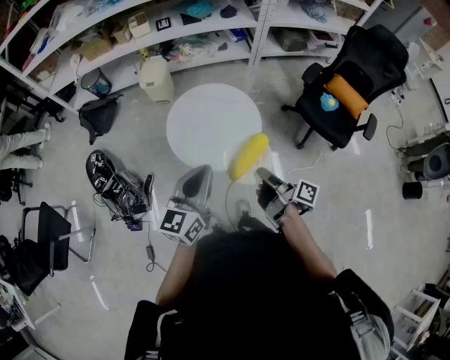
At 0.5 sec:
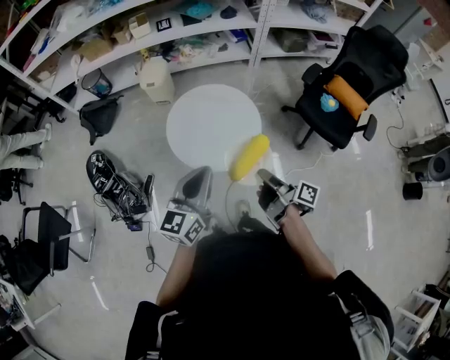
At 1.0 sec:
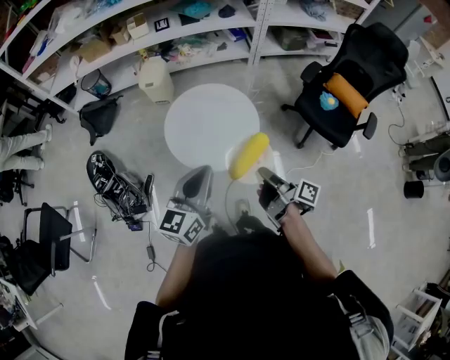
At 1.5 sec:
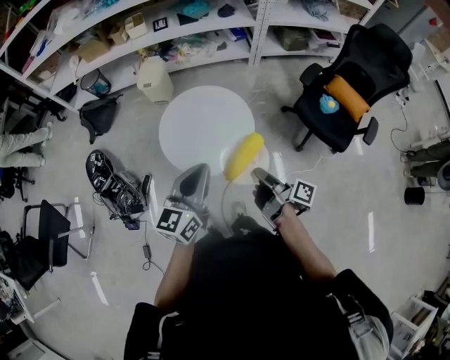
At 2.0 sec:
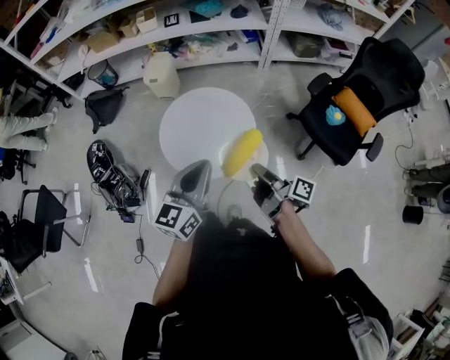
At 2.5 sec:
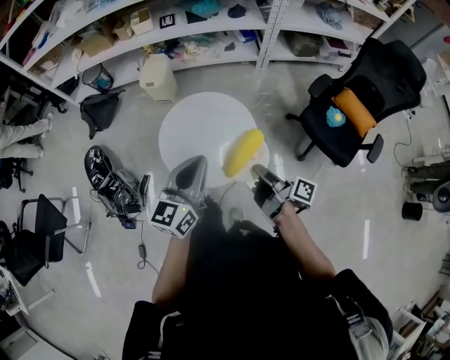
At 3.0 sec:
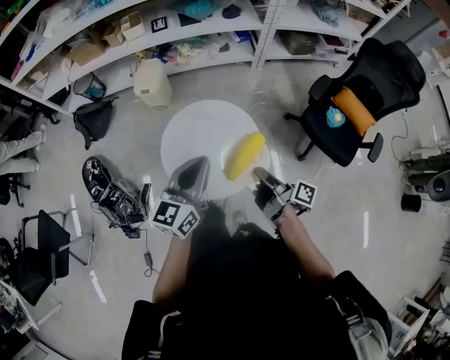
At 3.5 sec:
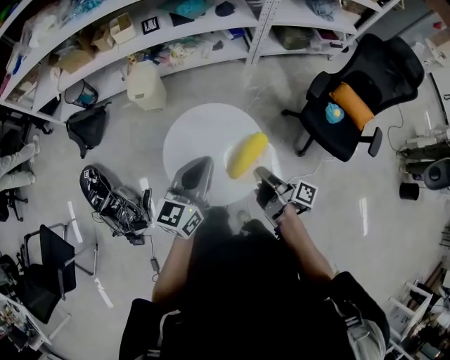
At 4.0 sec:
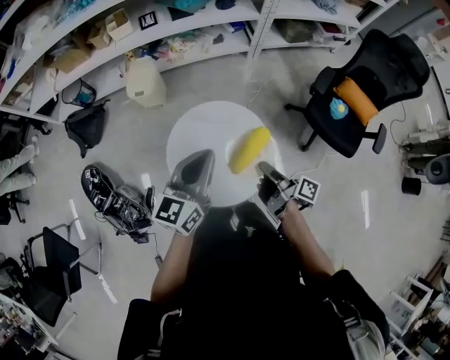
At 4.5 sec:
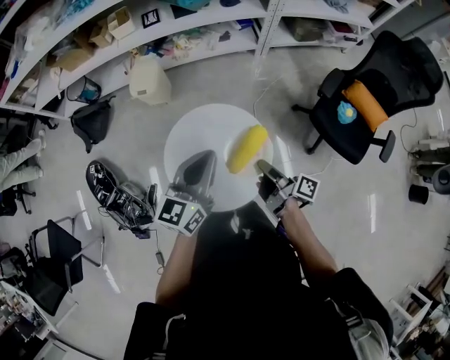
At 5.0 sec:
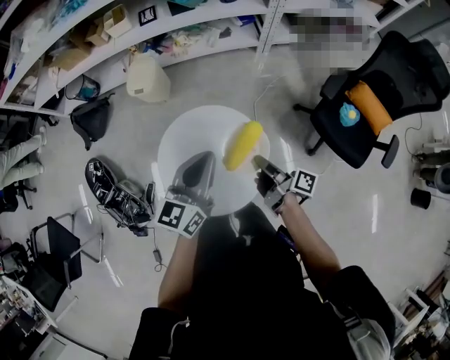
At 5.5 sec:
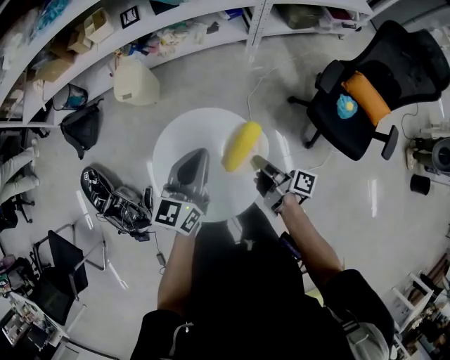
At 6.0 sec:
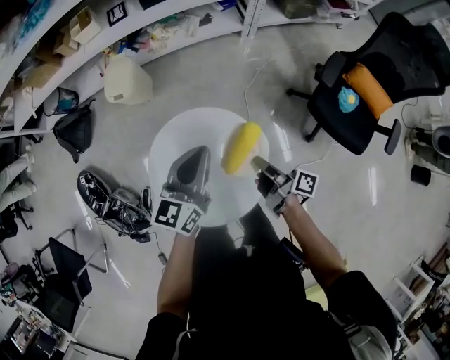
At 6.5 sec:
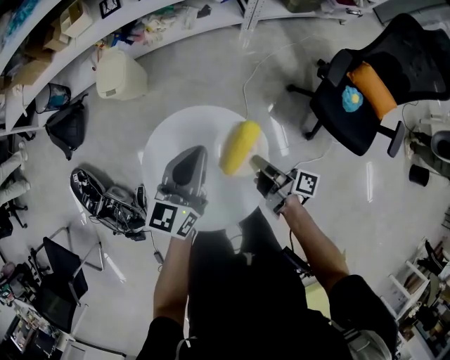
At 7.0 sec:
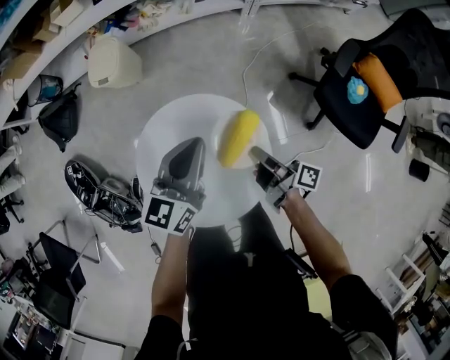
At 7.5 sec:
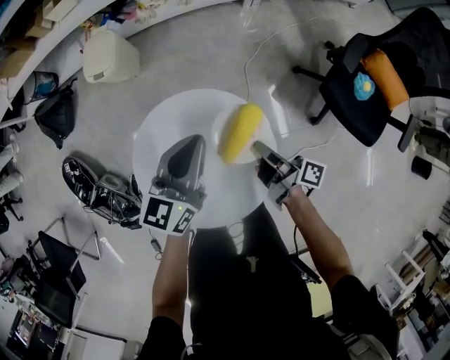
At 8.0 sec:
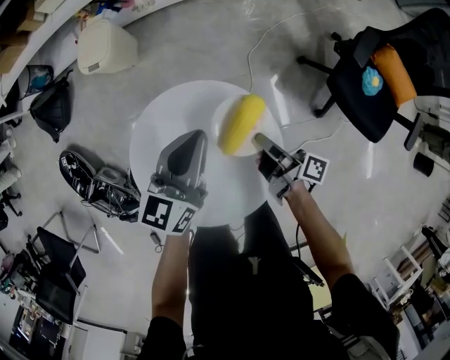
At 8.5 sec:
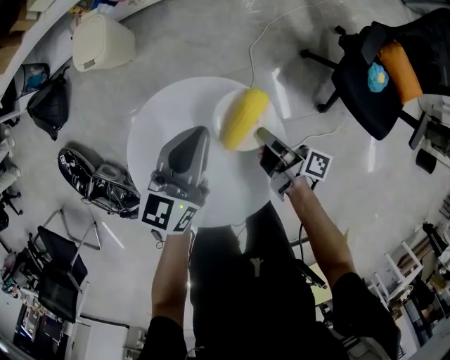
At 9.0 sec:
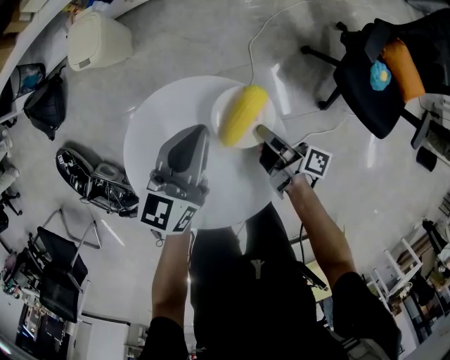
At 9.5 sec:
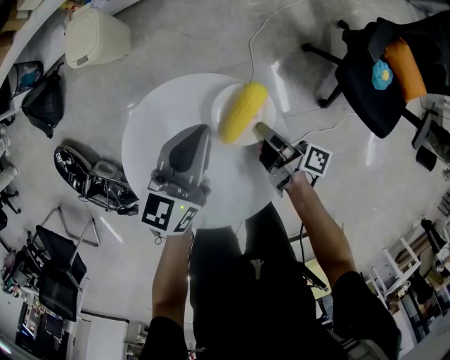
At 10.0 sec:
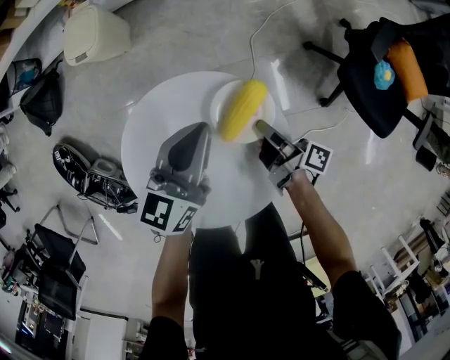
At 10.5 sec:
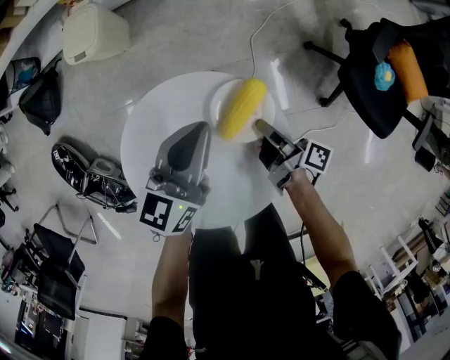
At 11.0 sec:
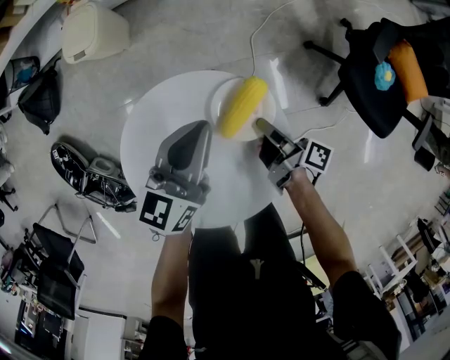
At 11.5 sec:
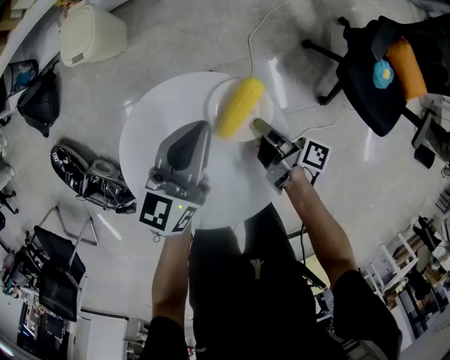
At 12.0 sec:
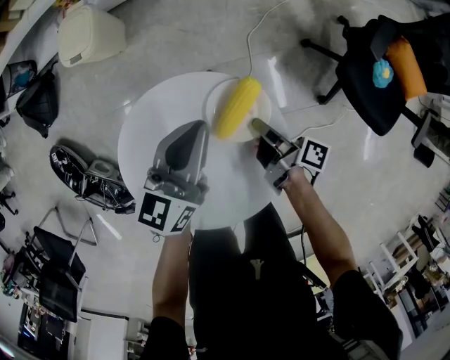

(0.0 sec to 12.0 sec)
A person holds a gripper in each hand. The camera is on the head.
0.0 sec - 2.0 sec: The left gripper changes place by about 10 cm.
2.0 sec - 4.0 sec: The left gripper moves some 20 cm.
4.0 sec - 6.0 sec: The left gripper shifts by some 20 cm.
6.0 sec - 8.0 sec: The left gripper travels downward by about 10 cm.
8.0 sec - 10.0 sec: The left gripper moves roughly 5 cm.

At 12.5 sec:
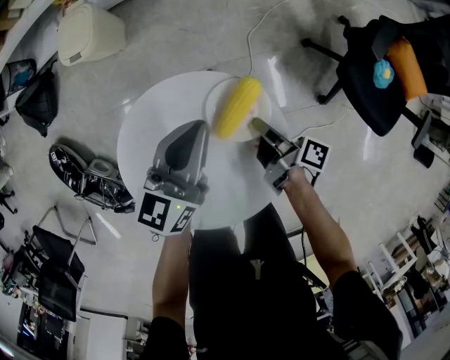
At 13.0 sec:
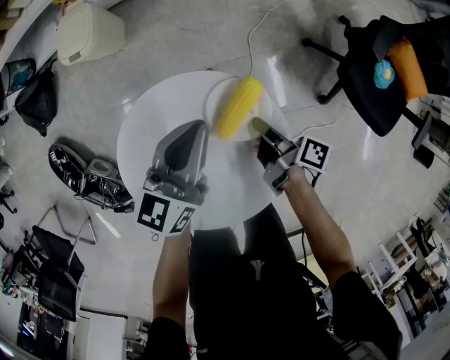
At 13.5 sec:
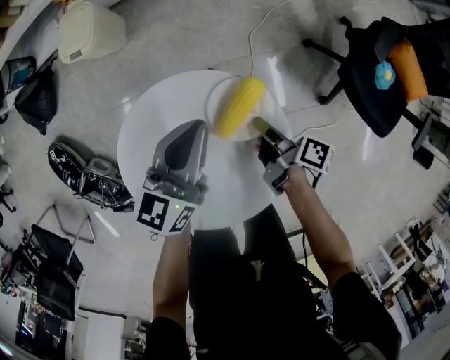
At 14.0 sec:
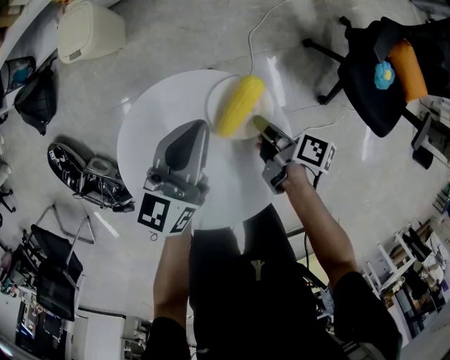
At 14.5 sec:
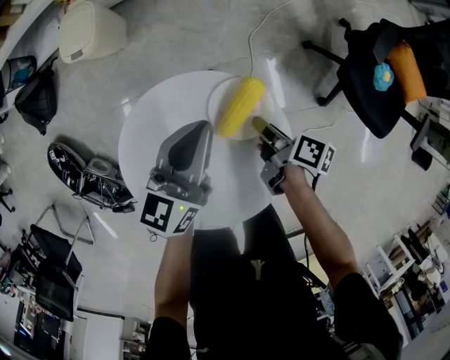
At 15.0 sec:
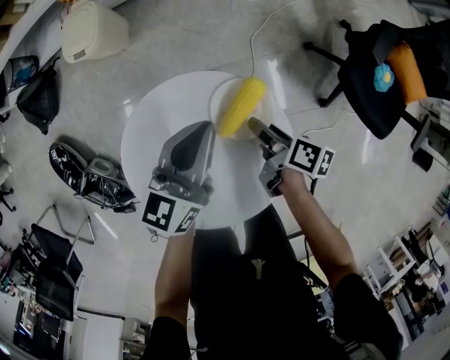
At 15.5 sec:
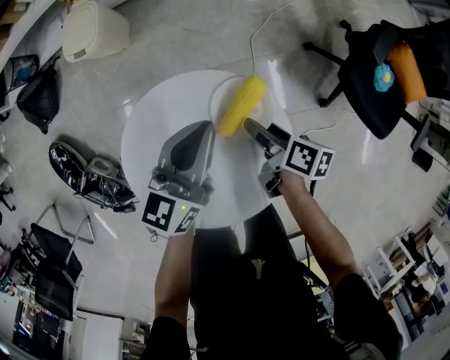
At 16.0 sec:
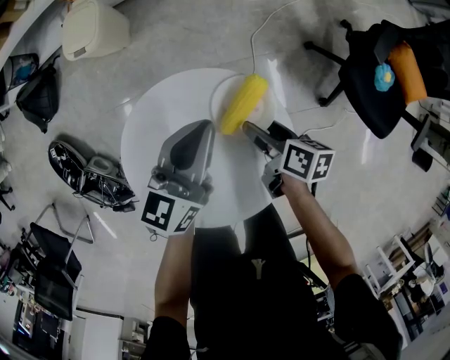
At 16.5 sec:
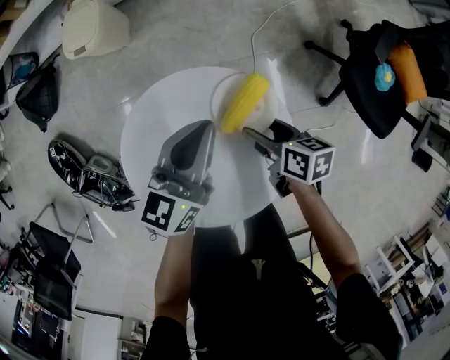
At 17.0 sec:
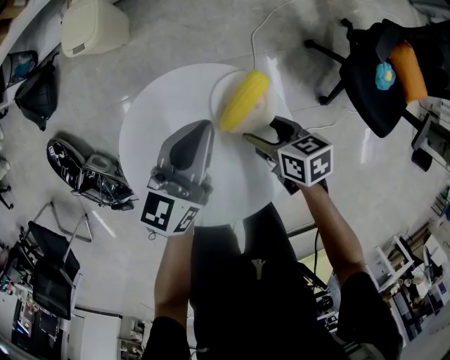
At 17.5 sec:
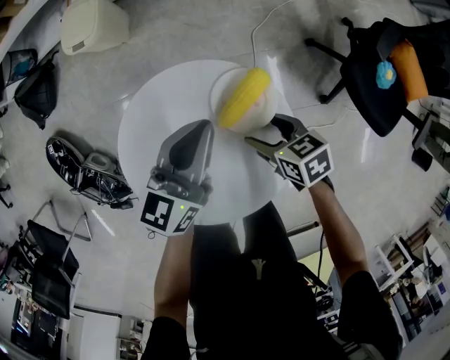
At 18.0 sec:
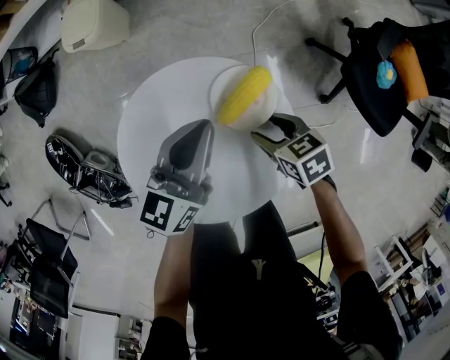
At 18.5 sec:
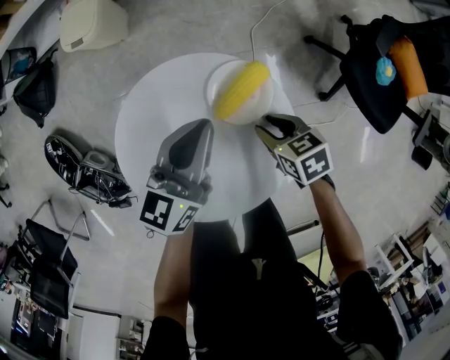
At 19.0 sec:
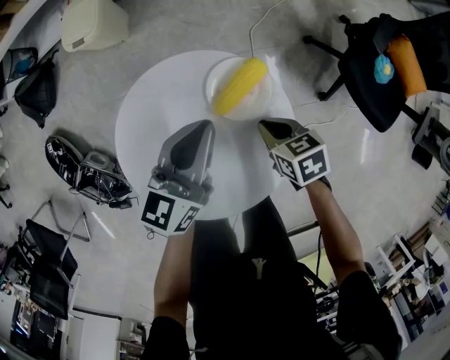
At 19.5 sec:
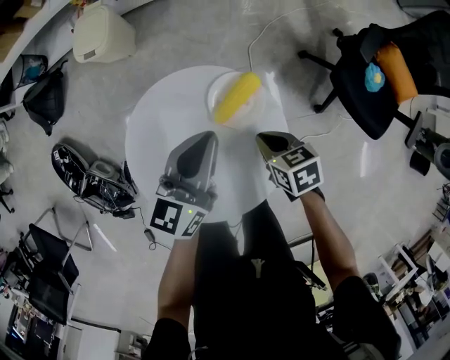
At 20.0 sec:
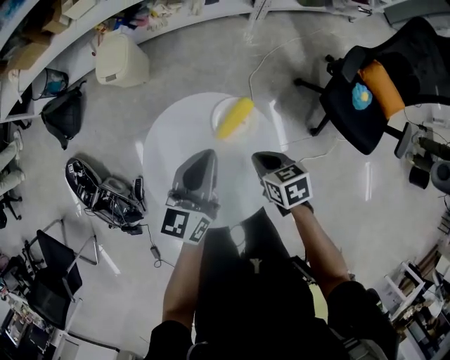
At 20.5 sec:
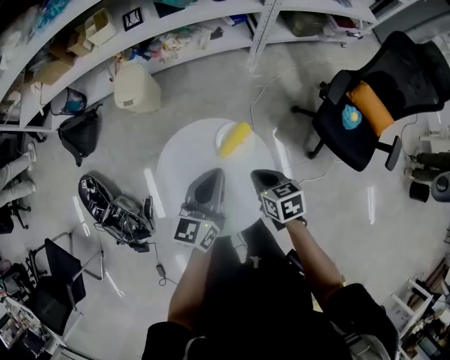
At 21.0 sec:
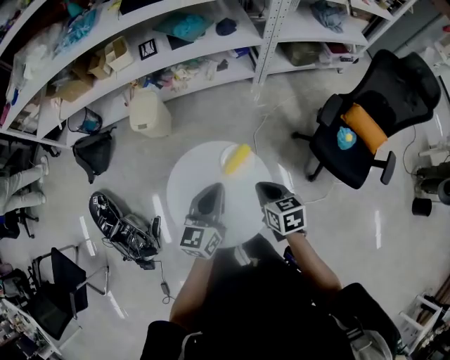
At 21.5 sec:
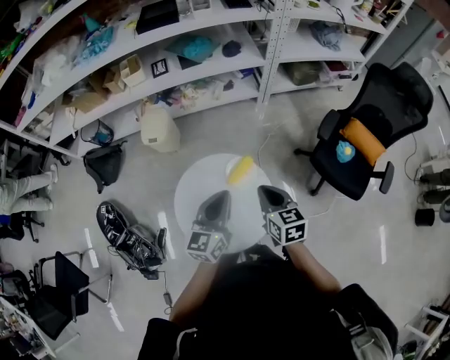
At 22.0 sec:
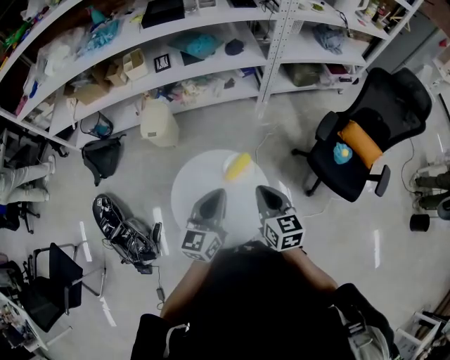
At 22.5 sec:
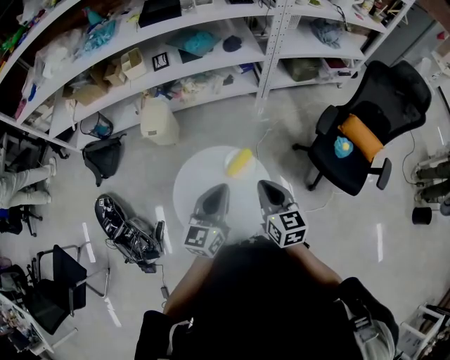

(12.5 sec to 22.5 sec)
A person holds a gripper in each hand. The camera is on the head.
18.5 sec - 20.5 sec: The left gripper is displaced upward by some 15 cm.
20.5 sec - 22.5 sec: The left gripper shifts roughly 10 cm upward.

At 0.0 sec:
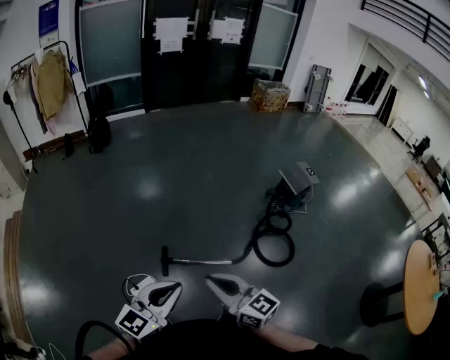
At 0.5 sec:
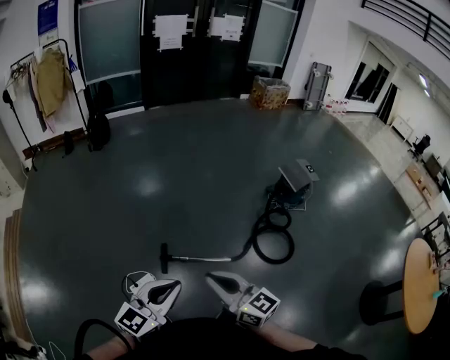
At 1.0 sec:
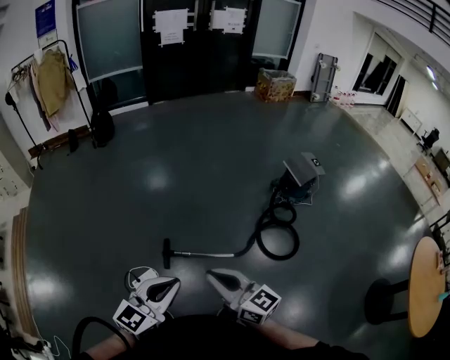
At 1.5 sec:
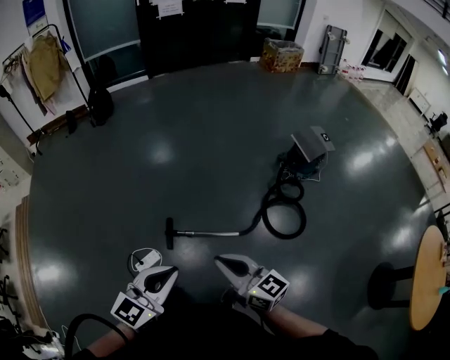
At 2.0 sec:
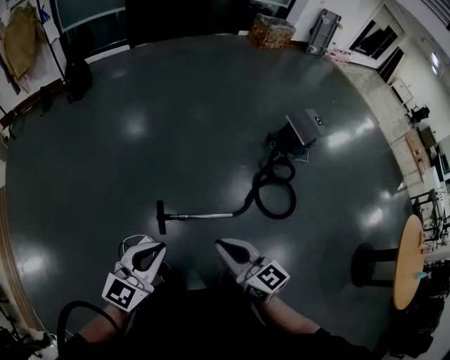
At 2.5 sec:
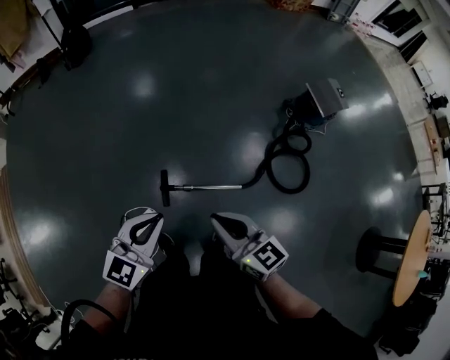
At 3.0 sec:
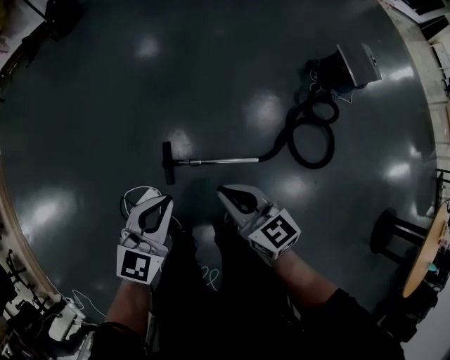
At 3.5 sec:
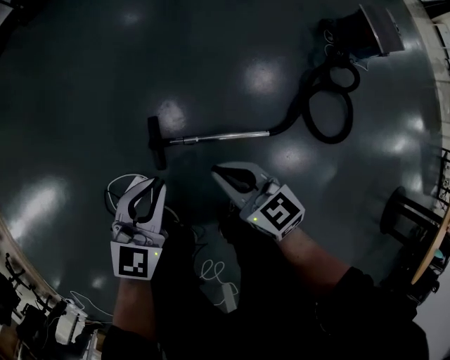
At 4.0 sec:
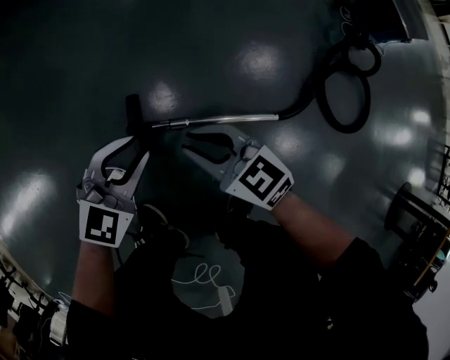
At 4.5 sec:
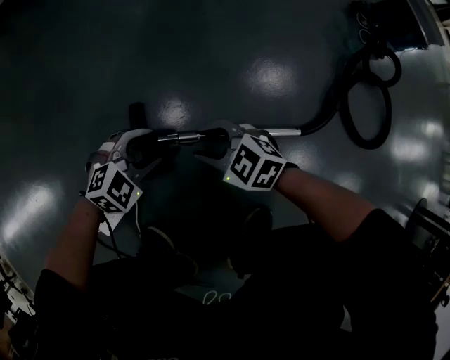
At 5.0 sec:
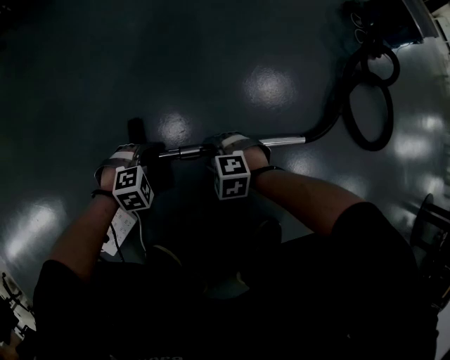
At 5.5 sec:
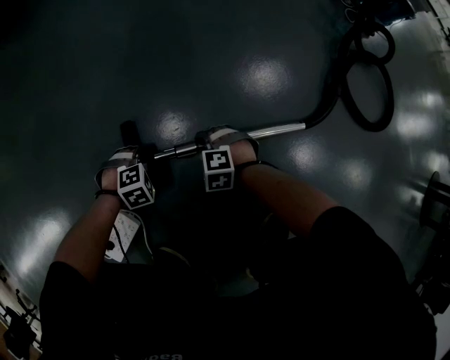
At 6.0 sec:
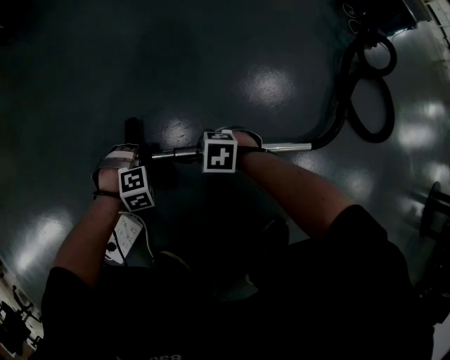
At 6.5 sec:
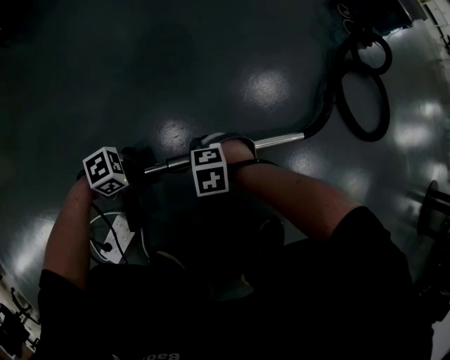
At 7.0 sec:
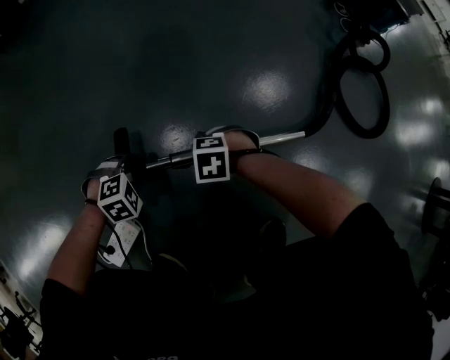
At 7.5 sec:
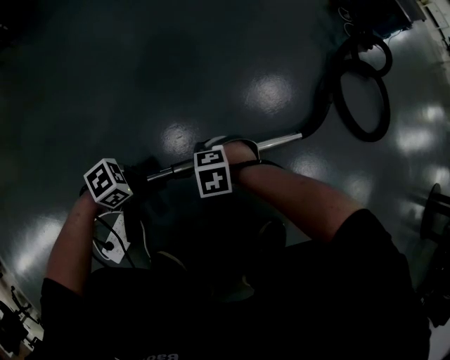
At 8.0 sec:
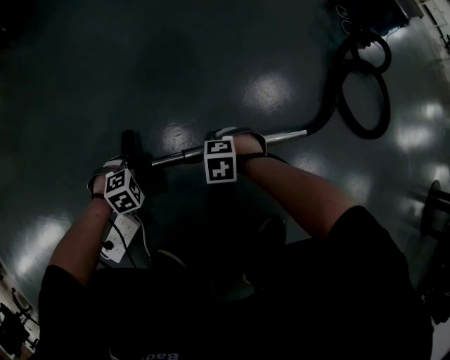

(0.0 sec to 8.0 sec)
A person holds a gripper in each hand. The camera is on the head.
0.0 sec - 2.0 sec: The right gripper travels forward and downward by roughly 15 cm. Meanwhile the left gripper is displaced forward, to the left and downward by about 15 cm.
2.0 sec - 4.0 sec: Both grippers move downward, approximately 60 cm. The right gripper turns by some 30 degrees. The left gripper rotates about 30 degrees, and opens its fingers.
4.0 sec - 6.0 sec: The two grippers go some 35 cm downward. The right gripper tilts its fingers approximately 40 degrees downward, and opens its fingers. The left gripper tilts its fingers roughly 50 degrees downward, and opens, then closes again.
